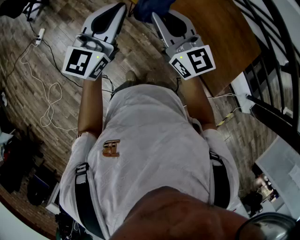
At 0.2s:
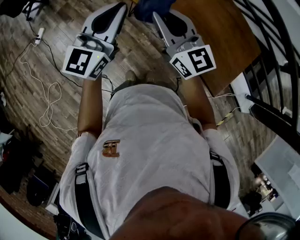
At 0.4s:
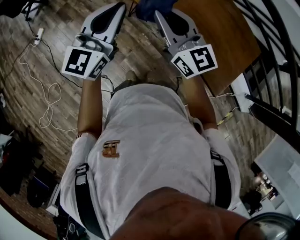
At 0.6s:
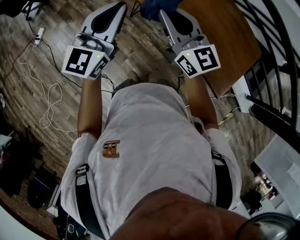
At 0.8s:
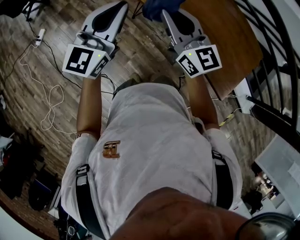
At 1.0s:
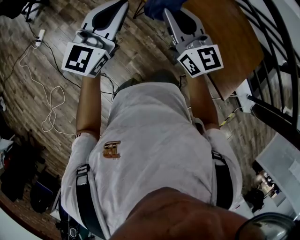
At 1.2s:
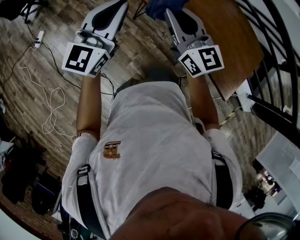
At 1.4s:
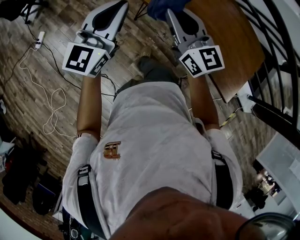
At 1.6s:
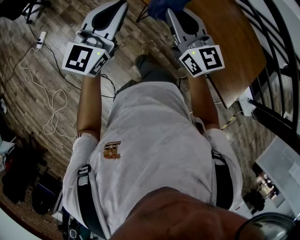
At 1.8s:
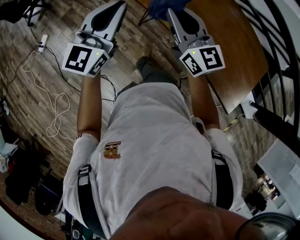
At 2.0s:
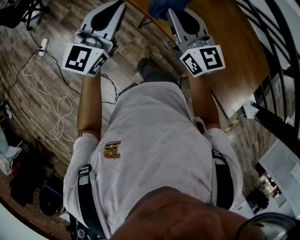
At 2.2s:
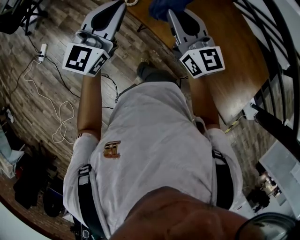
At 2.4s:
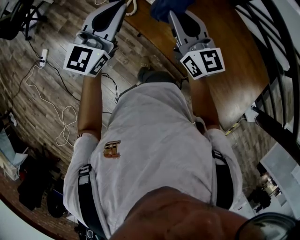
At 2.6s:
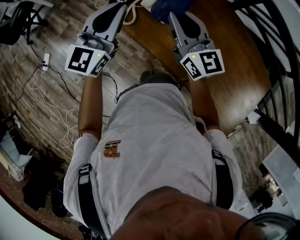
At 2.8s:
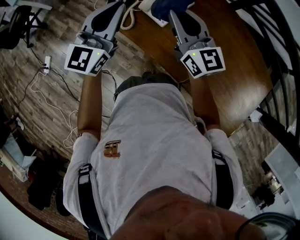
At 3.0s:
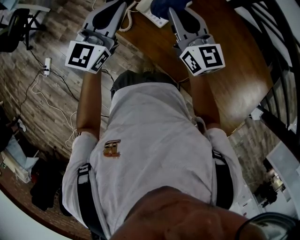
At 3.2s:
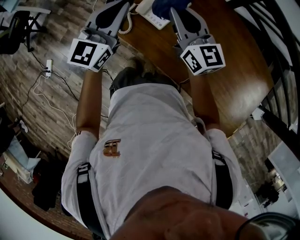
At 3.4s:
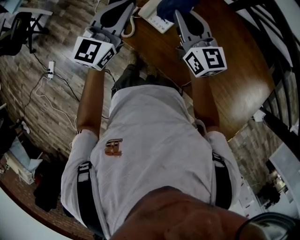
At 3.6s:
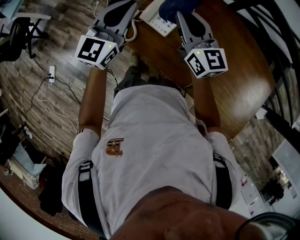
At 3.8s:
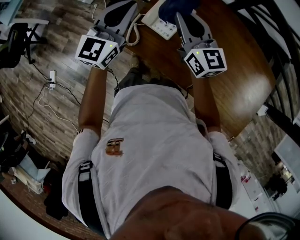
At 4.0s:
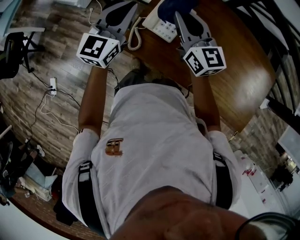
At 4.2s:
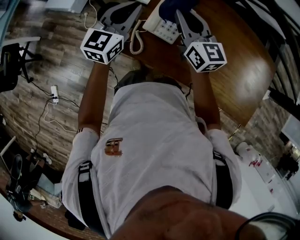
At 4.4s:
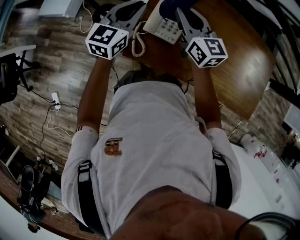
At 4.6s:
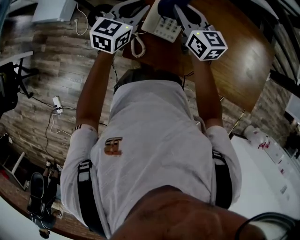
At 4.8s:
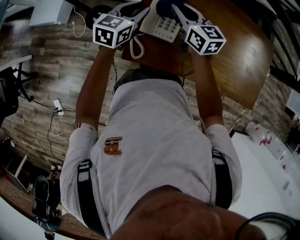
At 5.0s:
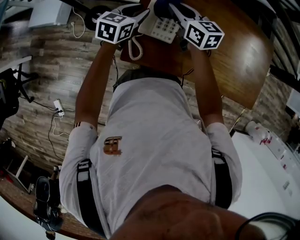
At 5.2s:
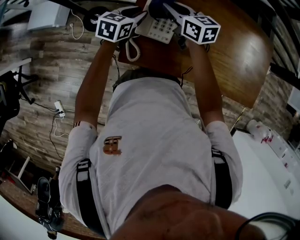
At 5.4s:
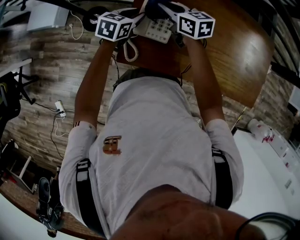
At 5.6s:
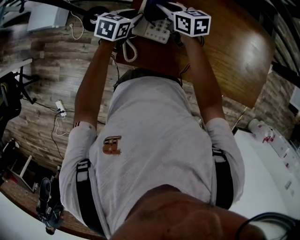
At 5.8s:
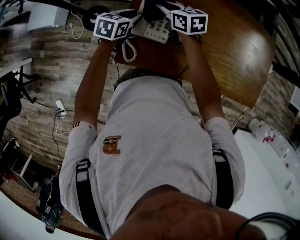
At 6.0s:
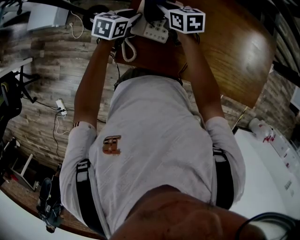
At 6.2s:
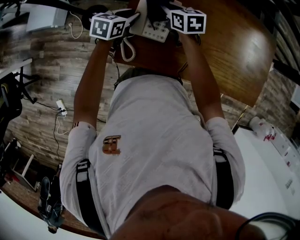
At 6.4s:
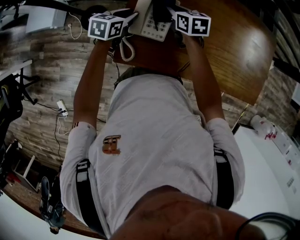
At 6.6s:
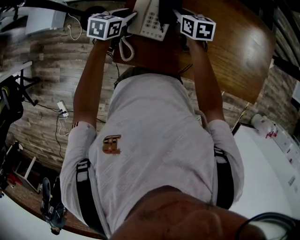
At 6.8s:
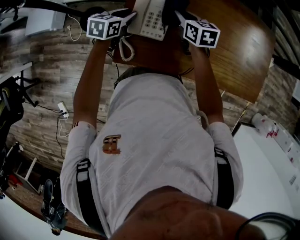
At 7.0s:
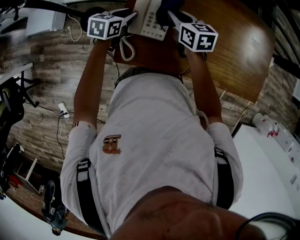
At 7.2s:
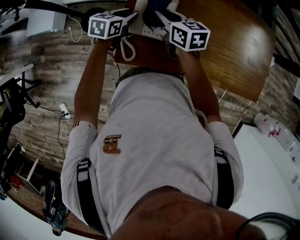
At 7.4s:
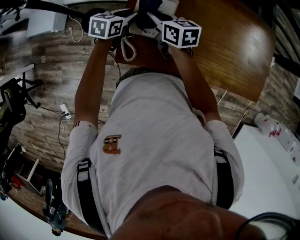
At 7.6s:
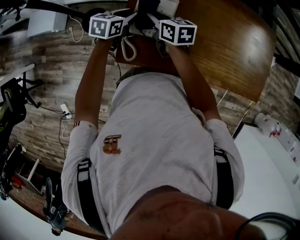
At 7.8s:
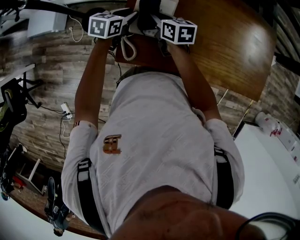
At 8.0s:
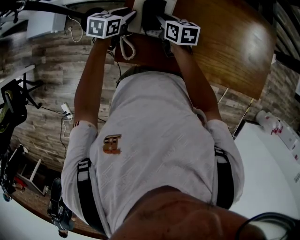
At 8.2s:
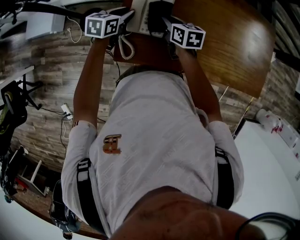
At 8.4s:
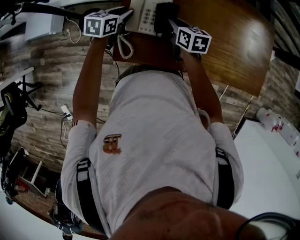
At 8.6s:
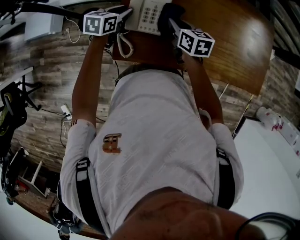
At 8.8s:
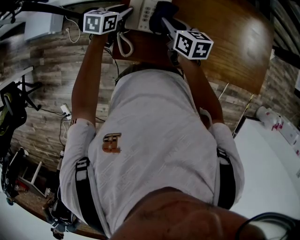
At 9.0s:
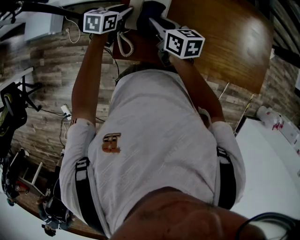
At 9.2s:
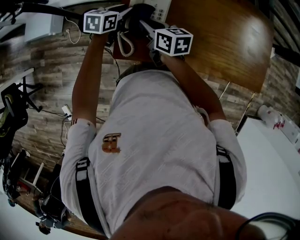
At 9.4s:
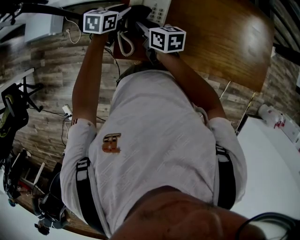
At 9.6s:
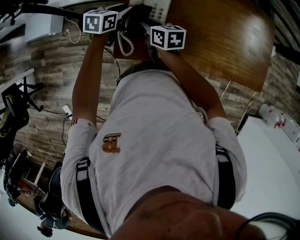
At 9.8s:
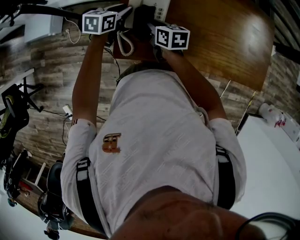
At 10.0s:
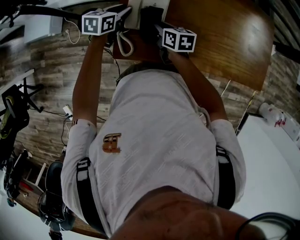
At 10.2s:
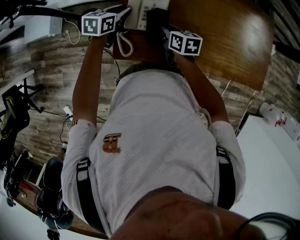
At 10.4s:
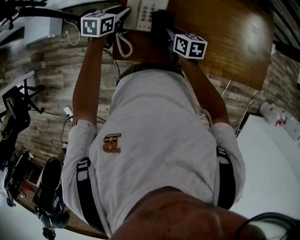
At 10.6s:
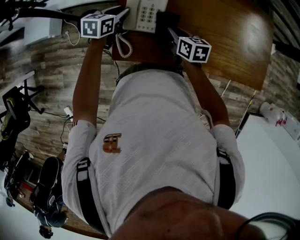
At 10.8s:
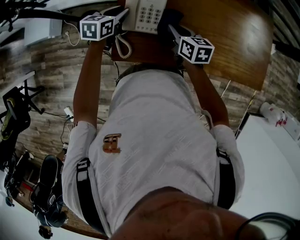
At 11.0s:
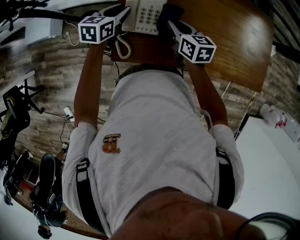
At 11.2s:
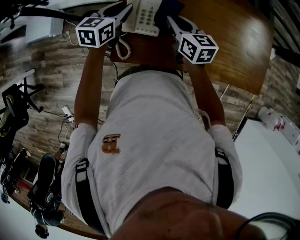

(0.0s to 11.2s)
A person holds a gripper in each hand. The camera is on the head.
0.0s - 1.6s: The two grippers go about 15 cm to the left and forward.
1.6s - 3.2s: Both grippers are carried forward, about 40 cm.
3.2s - 4.8s: The right gripper changes place by about 20 cm, and rotates roughly 30 degrees; the left gripper changes place by about 25 cm, and rotates approximately 40 degrees.
4.8s - 6.4s: The right gripper goes some 15 cm downward and to the right, and rotates about 20 degrees. The left gripper heads downward, covering approximately 10 cm.
6.4s - 8.0s: The right gripper moves left and right over approximately 10 cm, changing direction 2 times.
8.0s - 9.6s: The right gripper shifts roughly 5 cm backward, and goes to the right and returns, roughly 5 cm each way.
9.6s - 11.2s: The right gripper heads to the right and upward, covering about 15 cm. Meanwhile the left gripper shifts approximately 10 cm upward.

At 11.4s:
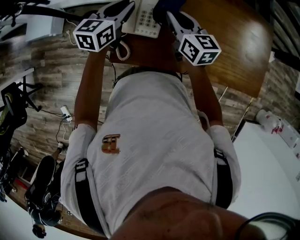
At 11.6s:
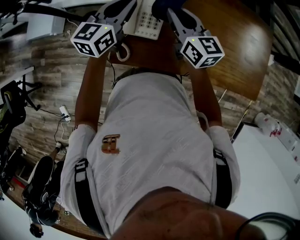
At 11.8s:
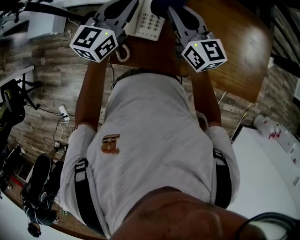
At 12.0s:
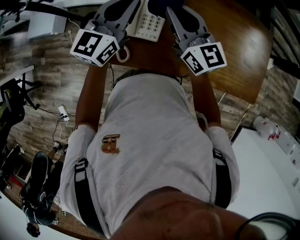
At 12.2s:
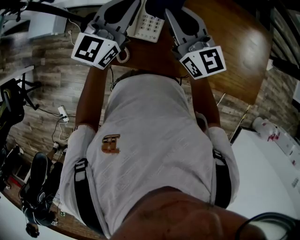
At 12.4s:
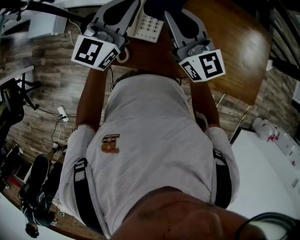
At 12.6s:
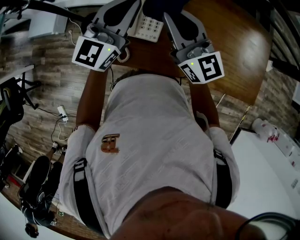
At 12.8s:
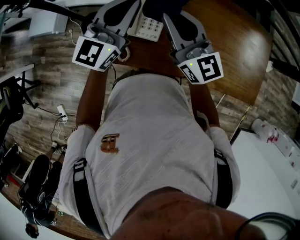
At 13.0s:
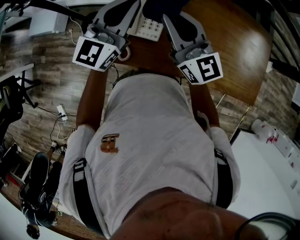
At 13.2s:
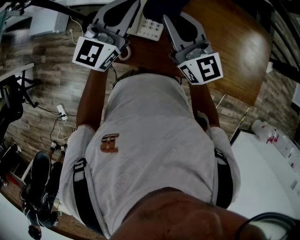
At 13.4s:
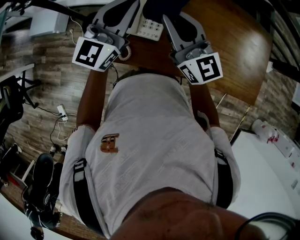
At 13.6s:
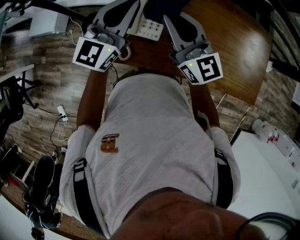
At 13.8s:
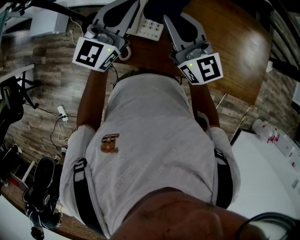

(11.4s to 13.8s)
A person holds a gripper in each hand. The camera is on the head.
11.4s - 12.6s: The two grippers go about 15 cm upward. The left gripper changes its angle by some 30 degrees. Meanwhile the right gripper rotates about 30 degrees.
12.6s - 13.8s: The left gripper shifts by some 5 cm.

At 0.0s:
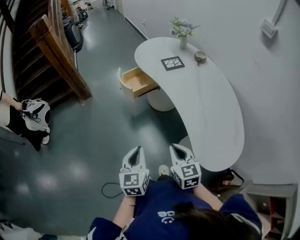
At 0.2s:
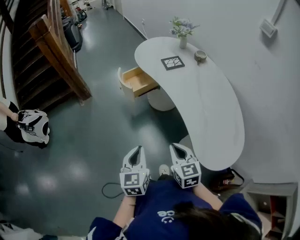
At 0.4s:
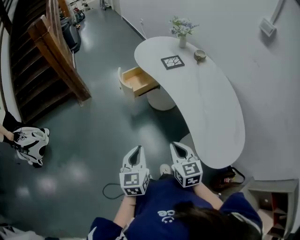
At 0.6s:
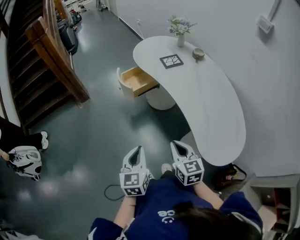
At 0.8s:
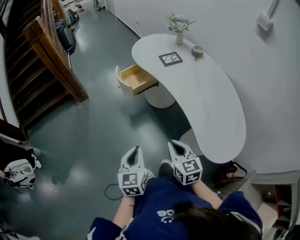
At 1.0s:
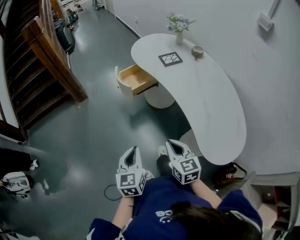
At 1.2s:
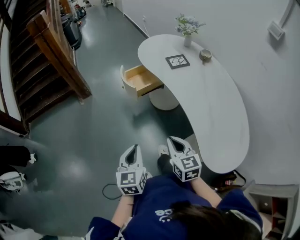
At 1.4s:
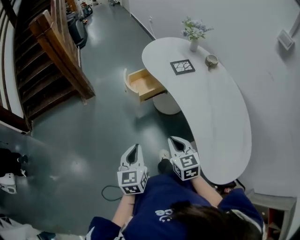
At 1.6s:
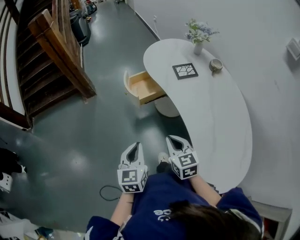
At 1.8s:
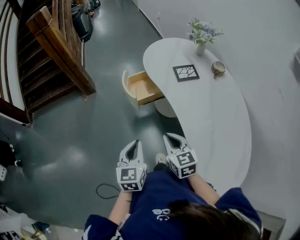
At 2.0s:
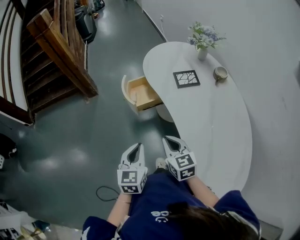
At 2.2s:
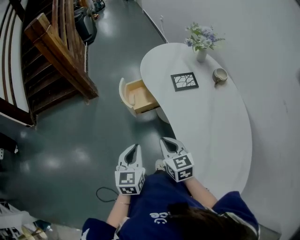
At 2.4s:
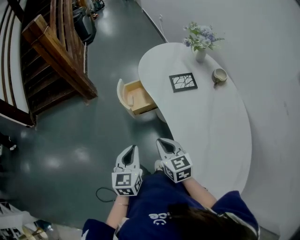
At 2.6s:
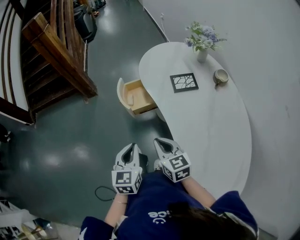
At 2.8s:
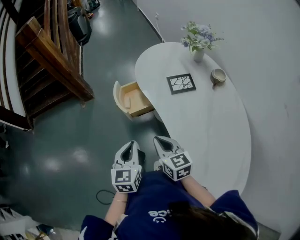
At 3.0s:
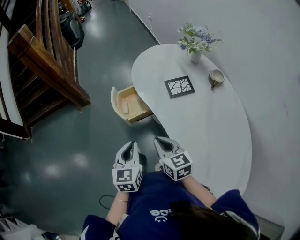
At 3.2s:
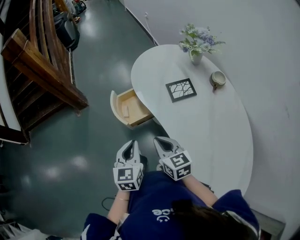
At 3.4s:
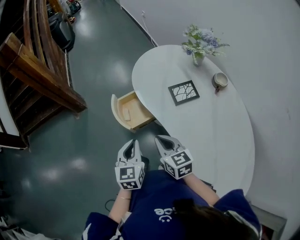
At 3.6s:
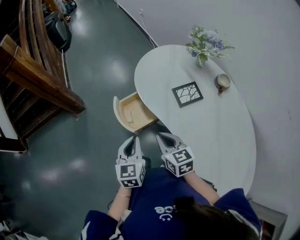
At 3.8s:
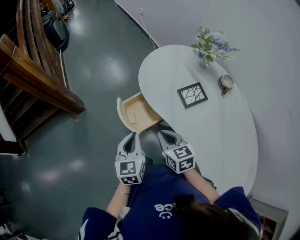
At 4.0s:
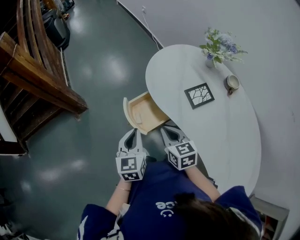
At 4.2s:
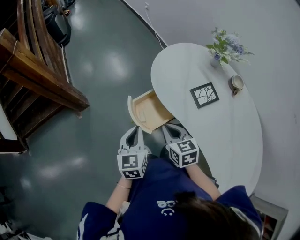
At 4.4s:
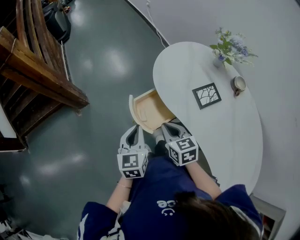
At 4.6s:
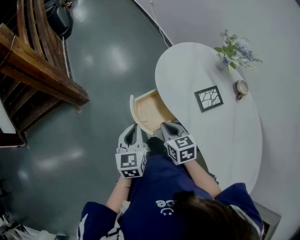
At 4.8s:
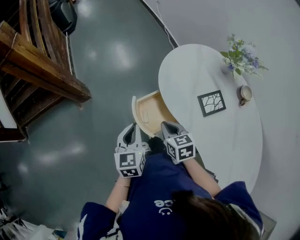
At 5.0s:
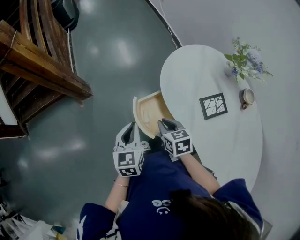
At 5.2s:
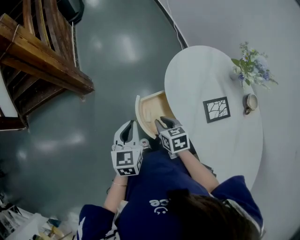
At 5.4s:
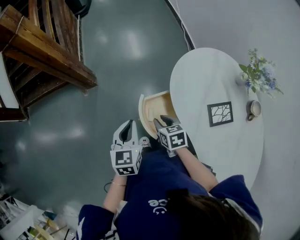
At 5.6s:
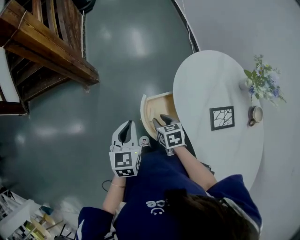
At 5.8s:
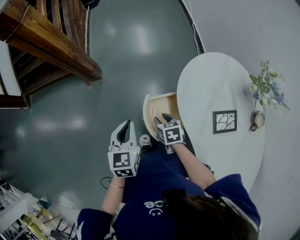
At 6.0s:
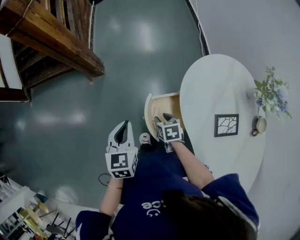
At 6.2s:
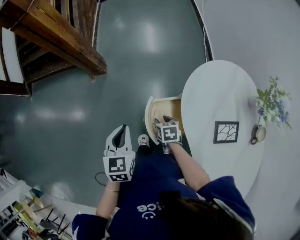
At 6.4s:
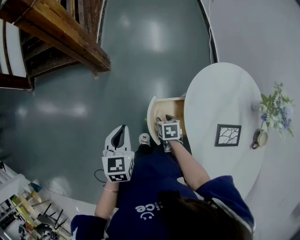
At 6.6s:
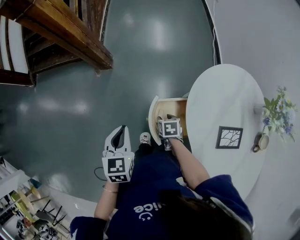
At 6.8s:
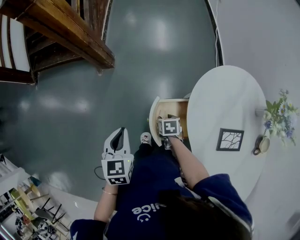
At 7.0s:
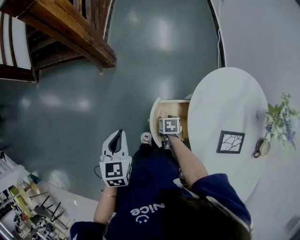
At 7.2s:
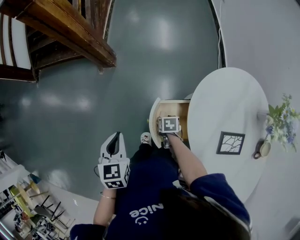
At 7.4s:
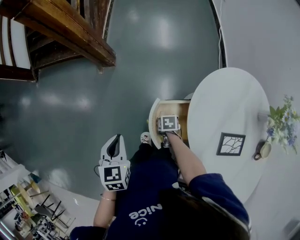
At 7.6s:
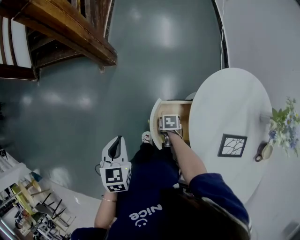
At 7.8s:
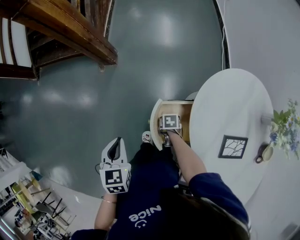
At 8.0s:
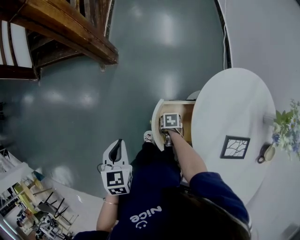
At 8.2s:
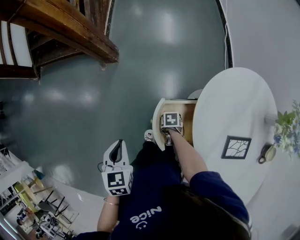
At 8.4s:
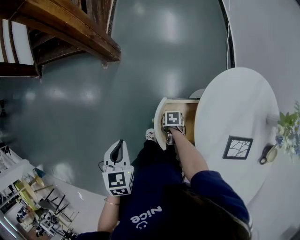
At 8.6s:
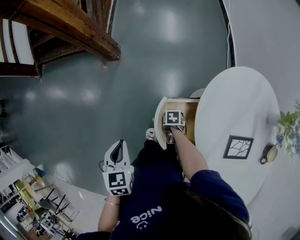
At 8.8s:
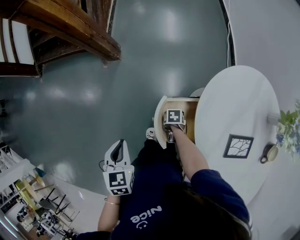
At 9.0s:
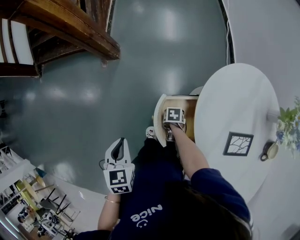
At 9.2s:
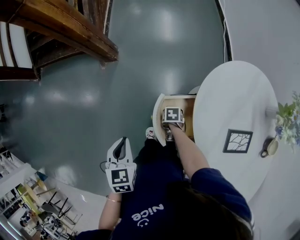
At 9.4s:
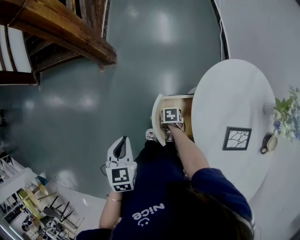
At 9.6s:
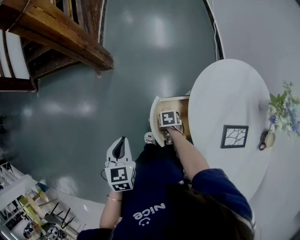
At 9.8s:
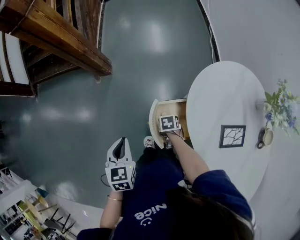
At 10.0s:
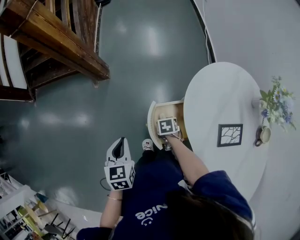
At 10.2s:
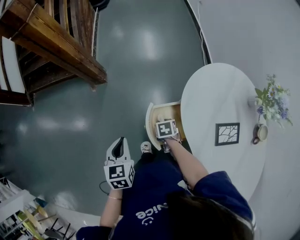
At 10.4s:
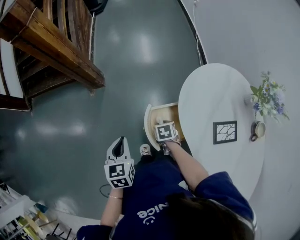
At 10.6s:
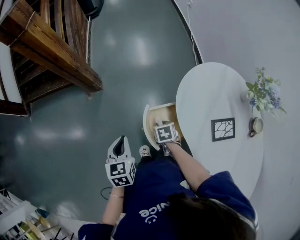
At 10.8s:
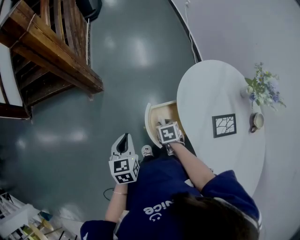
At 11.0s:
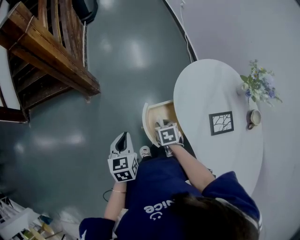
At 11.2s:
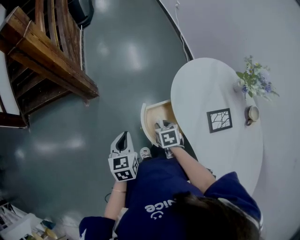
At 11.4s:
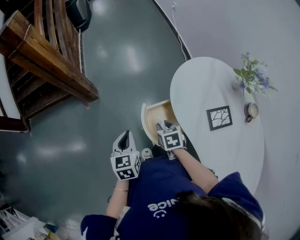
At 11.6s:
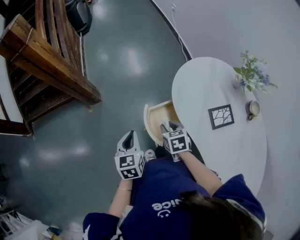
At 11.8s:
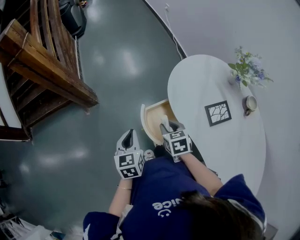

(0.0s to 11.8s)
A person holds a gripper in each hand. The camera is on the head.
0.0s - 1.4s: The grippers both shift forward by about 10 cm.
1.4s - 3.0s: The left gripper goes approximately 25 cm forward and to the right. The right gripper moves forward, about 20 cm.
3.0s - 4.4s: The grippers both shift forward and to the left by roughly 25 cm.
4.4s - 6.0s: The left gripper goes roughly 10 cm forward and to the left, and rotates approximately 20 degrees; the right gripper goes approximately 20 cm downward and forward, rotates roughly 30 degrees, and opens up.
6.0s - 7.4s: The left gripper ends up about 5 cm from where it was. The right gripper is displaced downward by roughly 10 cm.
7.4s - 8.8s: The grippers stay close to where they were, moving slightly.
8.8s - 10.4s: The right gripper is displaced upward by about 10 cm.
10.4s - 11.8s: The right gripper heads upward, covering approximately 15 cm, and changes its angle by roughly 20 degrees.
